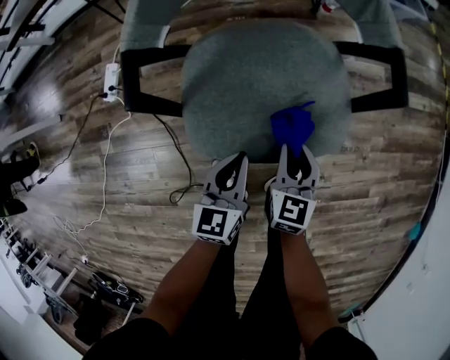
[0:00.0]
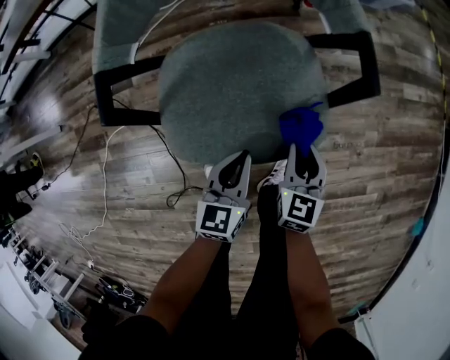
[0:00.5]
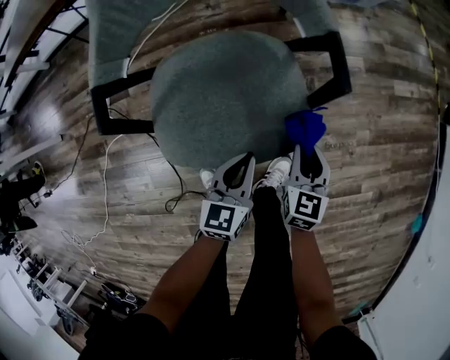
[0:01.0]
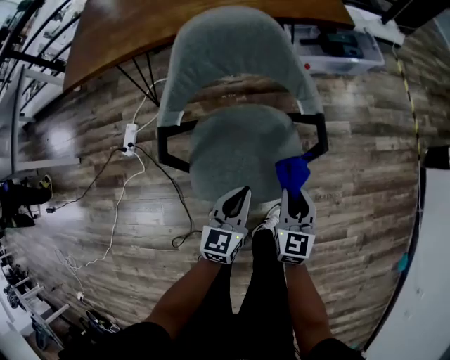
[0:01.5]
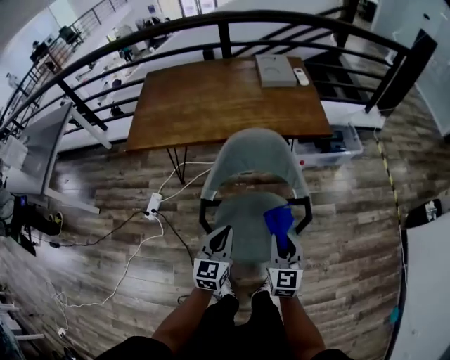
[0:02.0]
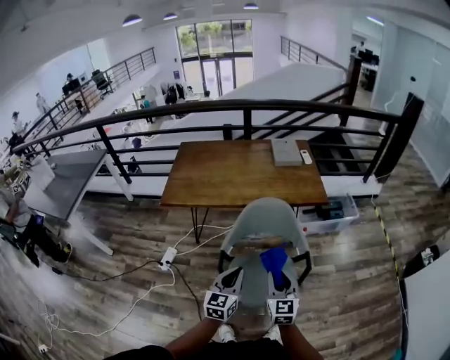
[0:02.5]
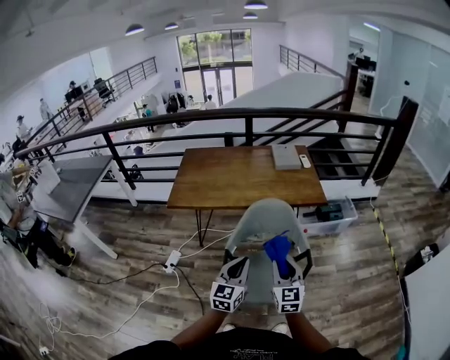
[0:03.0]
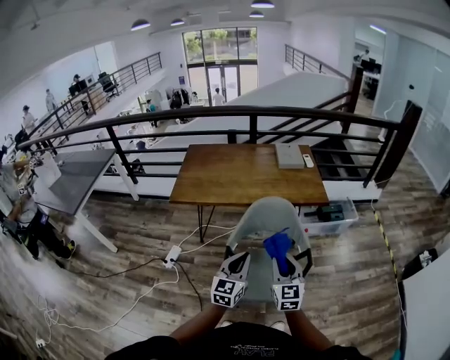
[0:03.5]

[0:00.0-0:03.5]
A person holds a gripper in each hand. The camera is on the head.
0:00.0 to 0:02.0: The two grippers go some 35 cm upward. The right gripper swivels approximately 20 degrees.
0:02.0 to 0:03.5: The left gripper moves upward and backward, about 20 cm. The right gripper is displaced upward and to the left by some 20 cm.

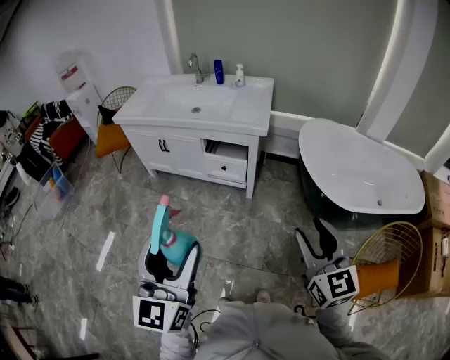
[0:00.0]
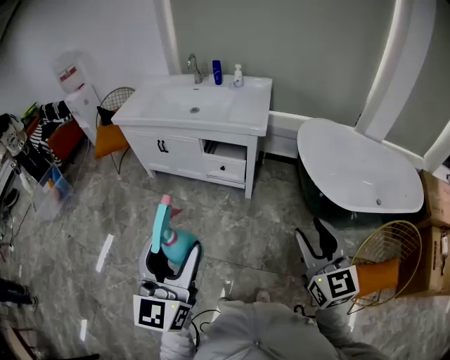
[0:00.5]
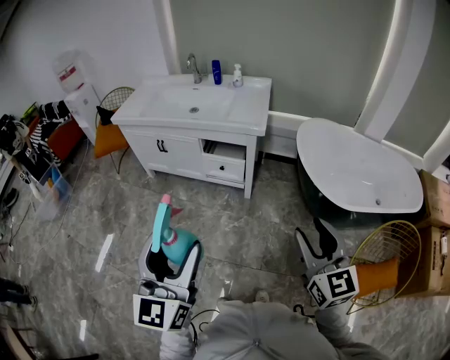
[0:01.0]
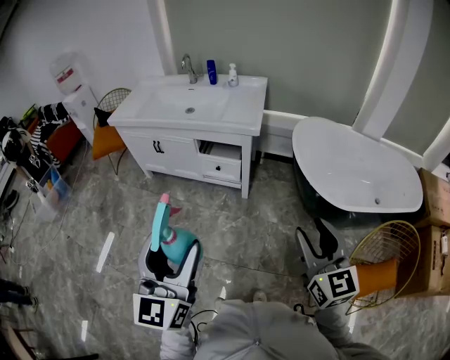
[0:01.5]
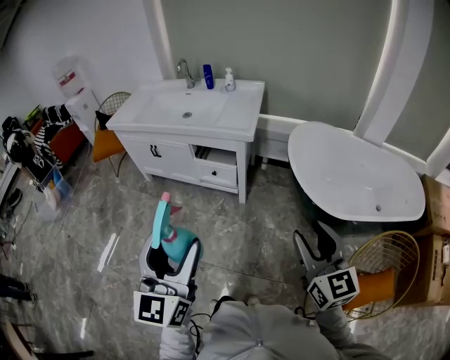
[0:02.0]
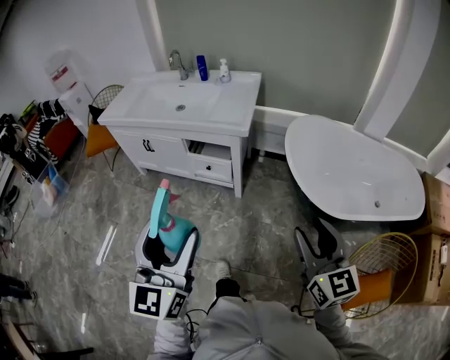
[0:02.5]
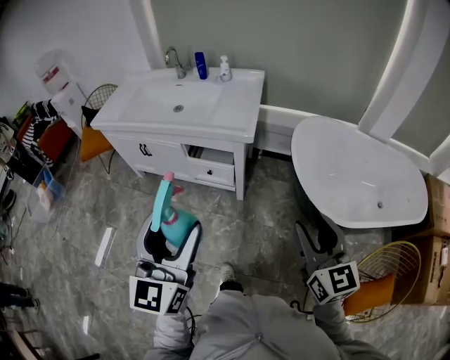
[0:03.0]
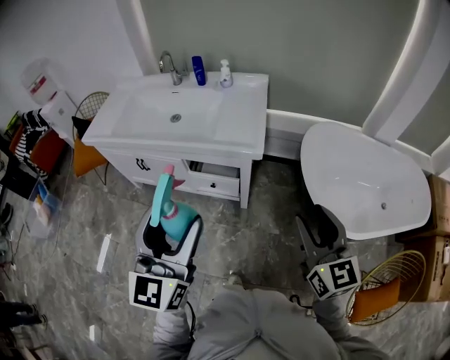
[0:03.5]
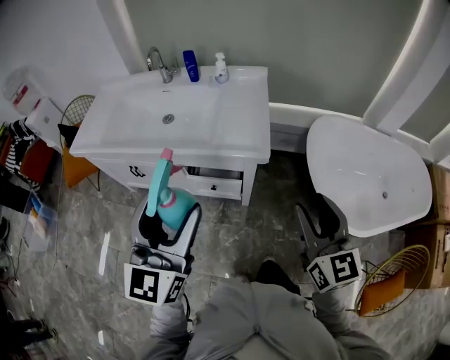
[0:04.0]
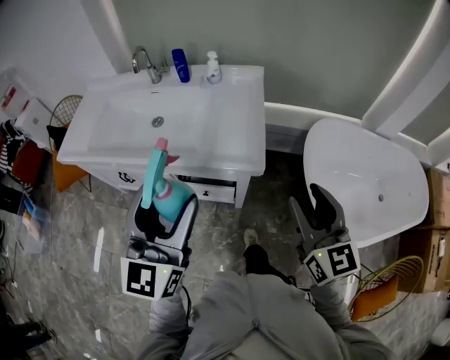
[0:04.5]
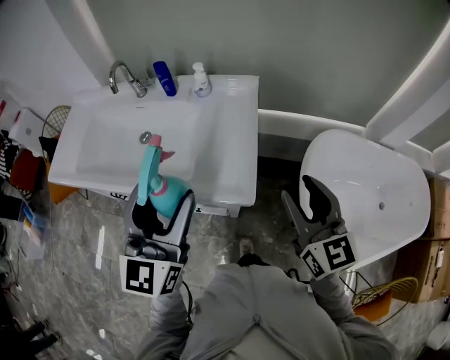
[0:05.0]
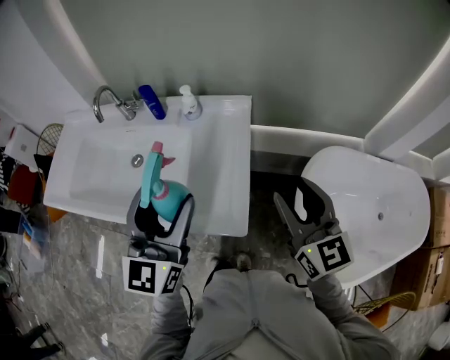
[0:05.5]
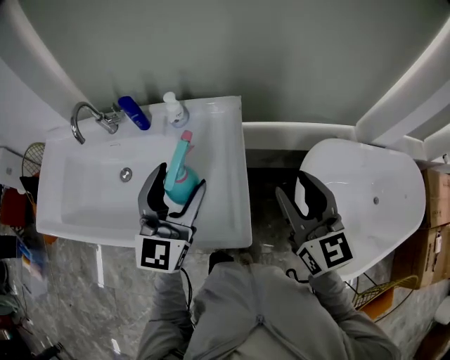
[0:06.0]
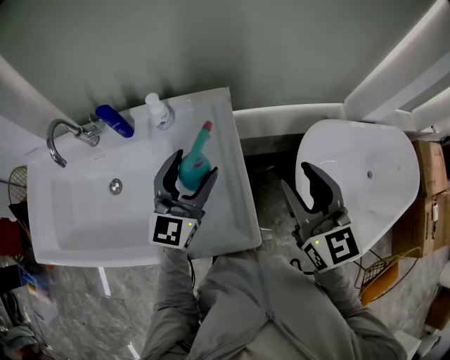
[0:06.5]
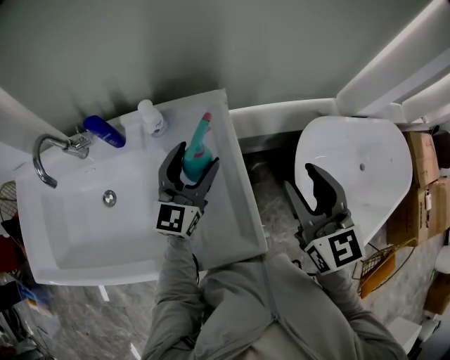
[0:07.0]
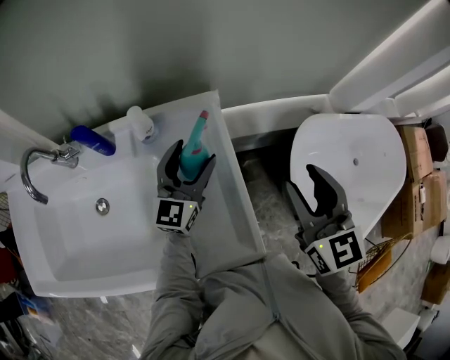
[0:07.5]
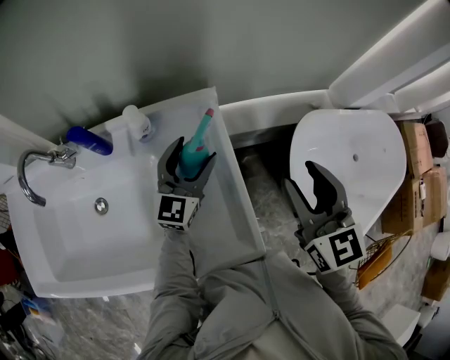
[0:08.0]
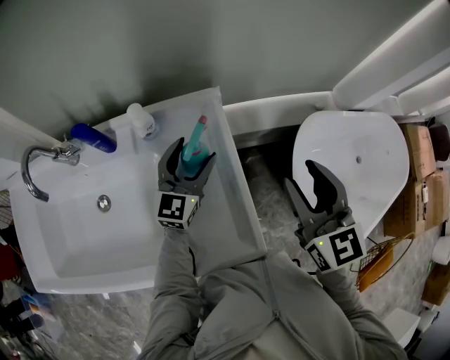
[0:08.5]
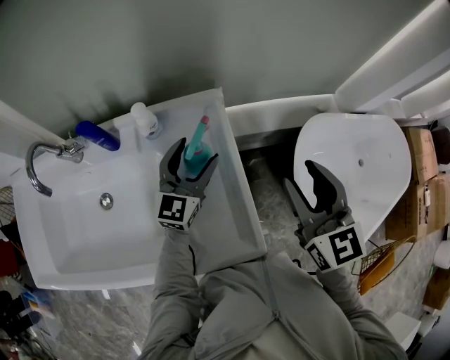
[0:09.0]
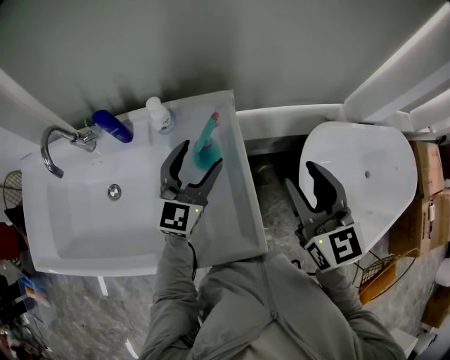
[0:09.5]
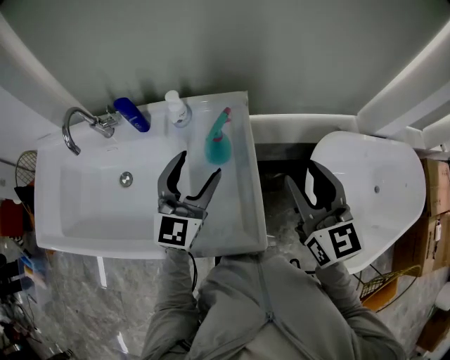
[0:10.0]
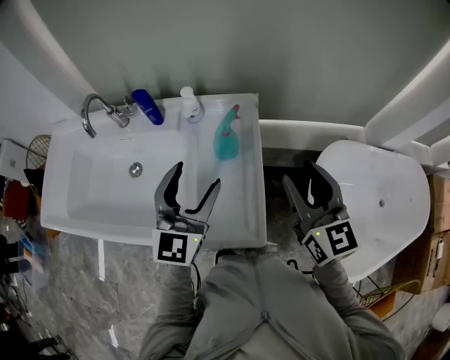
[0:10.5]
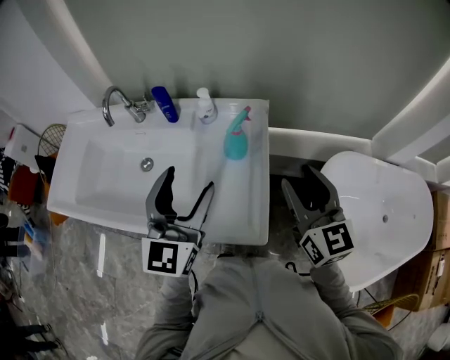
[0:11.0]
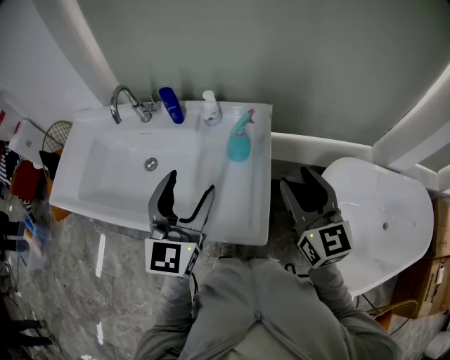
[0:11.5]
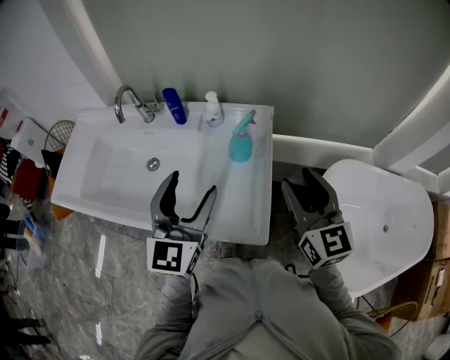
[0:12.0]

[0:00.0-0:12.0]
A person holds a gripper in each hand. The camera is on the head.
0:00.0 to 0:02.0: Both grippers move to the right, about 10 cm.
0:02.0 to 0:04.0: The two grippers go some 35 cm forward.
0:04.0 to 0:06.0: The grippers both shift forward by roughly 40 cm.
0:06.0 to 0:08.0: The right gripper moves forward, approximately 5 cm, while the left gripper is displaced forward and downward by about 25 cm, and swivels about 20 degrees.
0:08.0 to 0:10.0: The left gripper travels backward and upward by roughly 15 cm.
0:10.0 to 0:12.0: The right gripper moves approximately 5 cm. Meanwhile the left gripper moves backward, upward and to the left, approximately 15 cm.

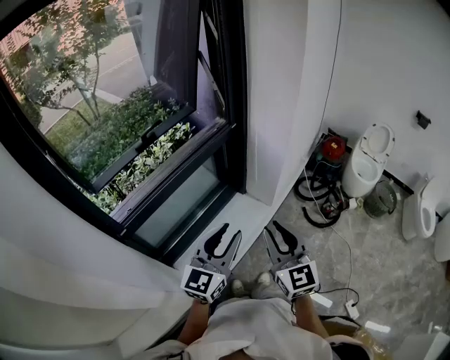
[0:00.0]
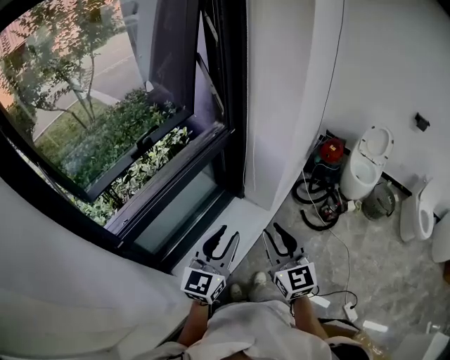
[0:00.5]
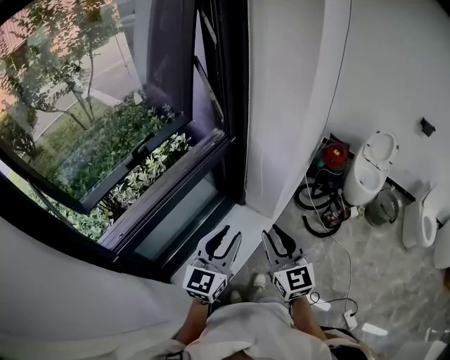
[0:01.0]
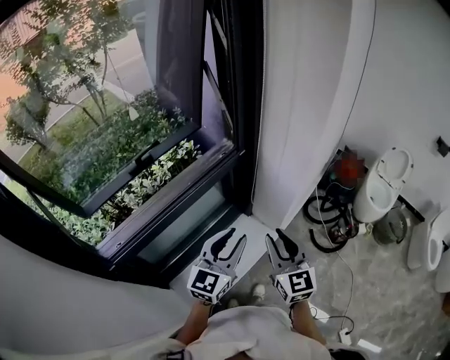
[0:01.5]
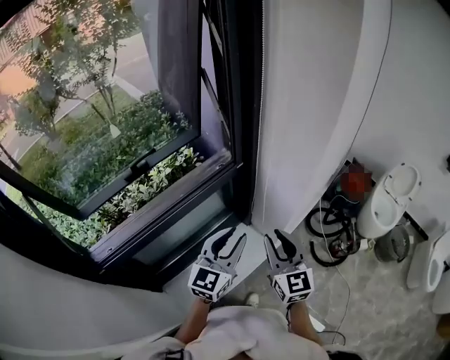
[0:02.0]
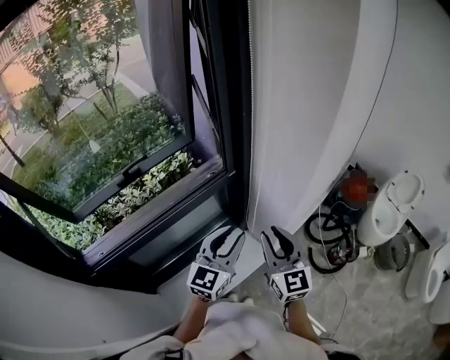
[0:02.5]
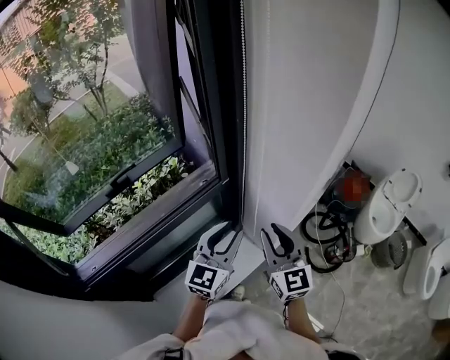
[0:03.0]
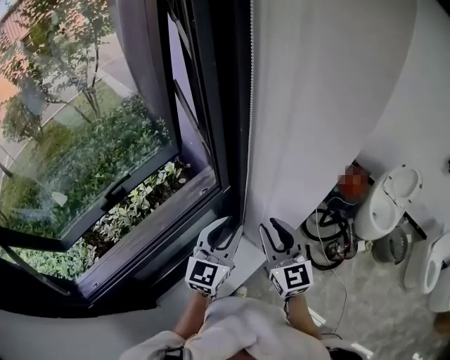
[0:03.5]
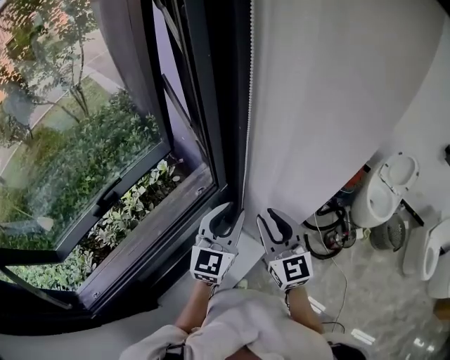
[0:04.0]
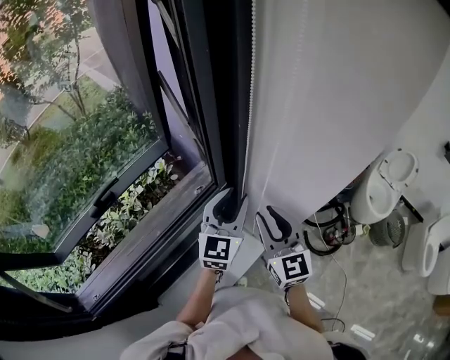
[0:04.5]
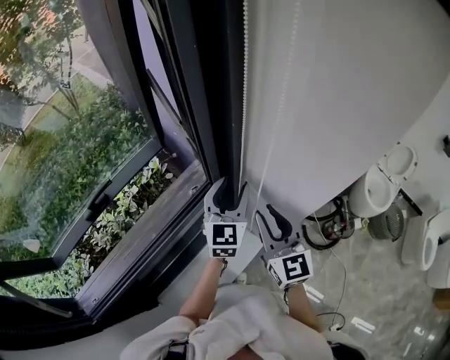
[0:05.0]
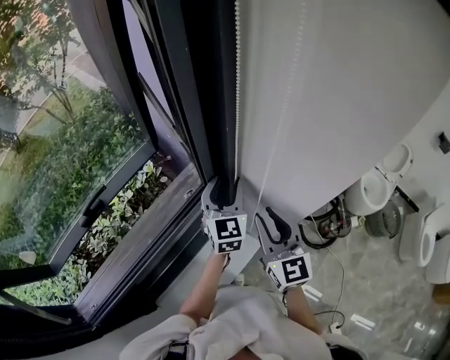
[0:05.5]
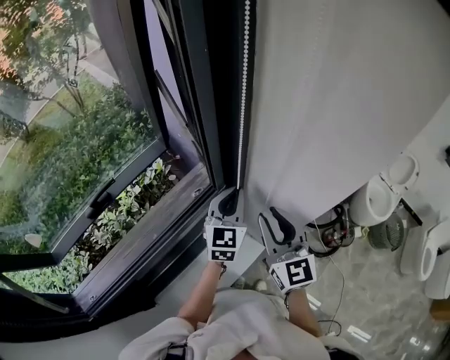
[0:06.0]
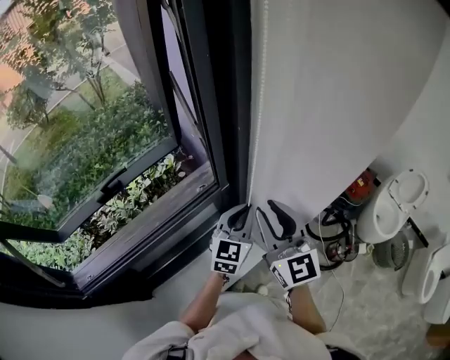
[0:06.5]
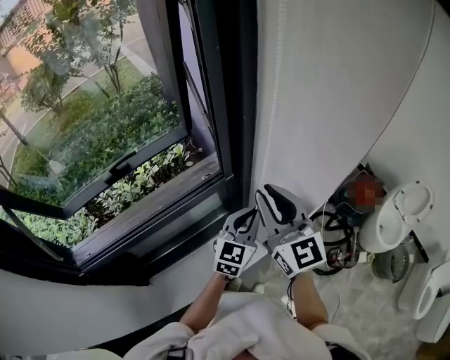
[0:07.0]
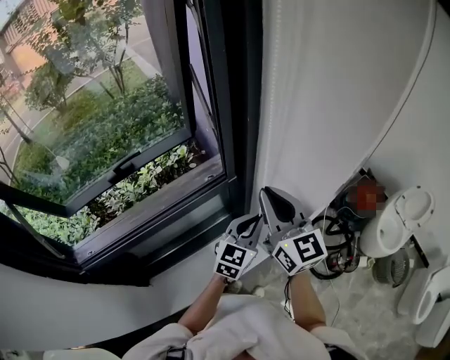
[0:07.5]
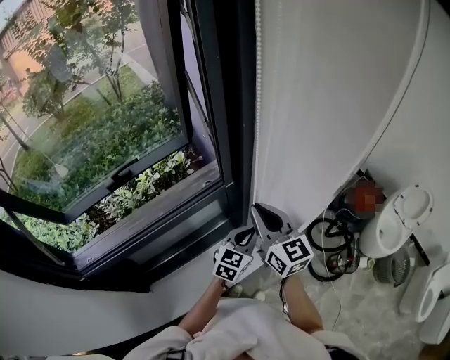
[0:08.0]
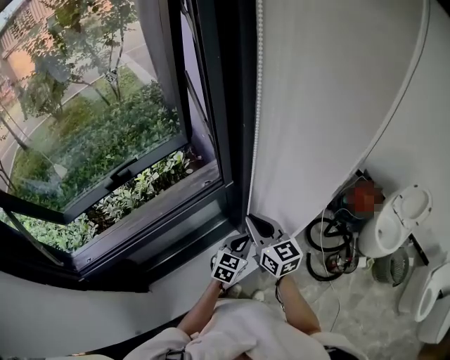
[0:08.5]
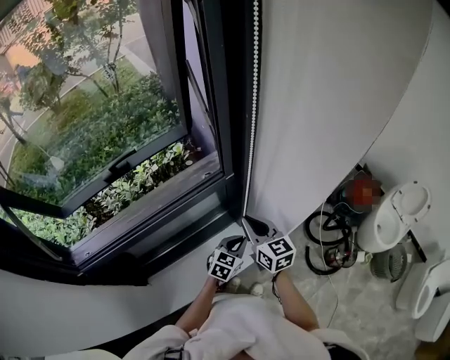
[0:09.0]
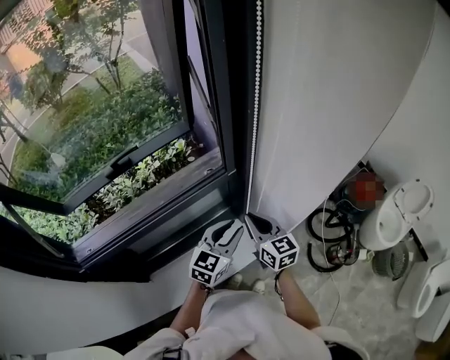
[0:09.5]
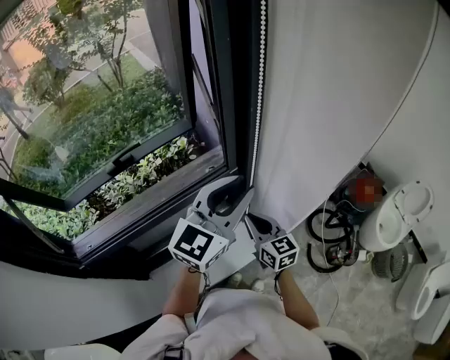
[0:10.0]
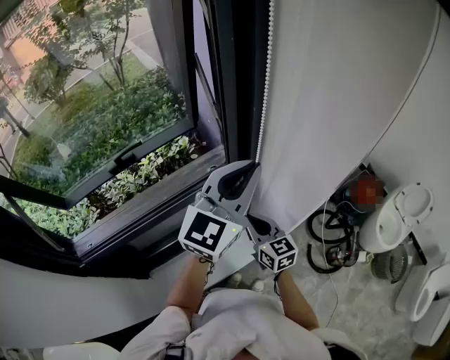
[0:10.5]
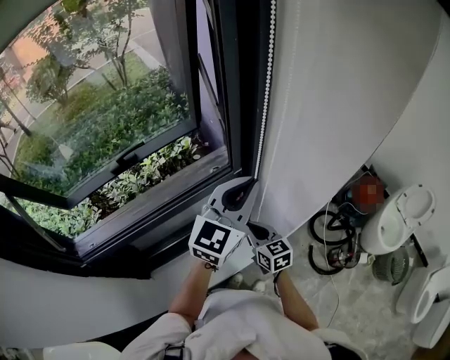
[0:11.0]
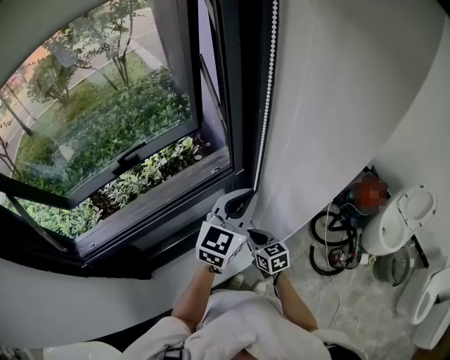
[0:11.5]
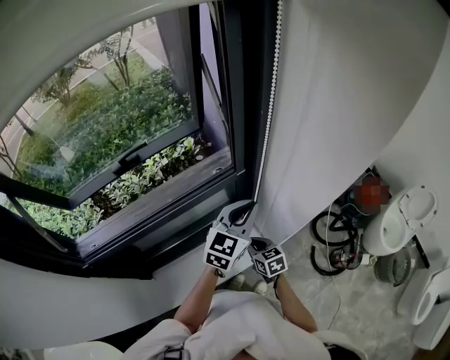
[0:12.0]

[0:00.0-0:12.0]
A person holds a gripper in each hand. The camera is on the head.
0:00.0 to 0:02.0: Both grippers move forward, roughly 25 cm.
0:02.0 to 0:04.0: The two grippers go some 20 cm forward.
0:04.0 to 0:06.0: The left gripper shifts some 10 cm forward, and closes up.
0:06.0 to 0:08.0: The left gripper is displaced backward and downward by some 15 cm. The right gripper moves some 10 cm upward and comes back, turns by about 20 degrees, and closes up.
0:08.0 to 0:10.0: The right gripper is displaced downward by approximately 10 cm. Meanwhile the left gripper heads upward, covering roughly 25 cm, changes its angle by about 20 degrees, and opens.
0:10.0 to 0:12.0: The grippers both shift downward by approximately 15 cm. The right gripper changes its angle by some 20 degrees, while the left gripper closes.
